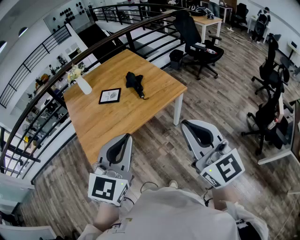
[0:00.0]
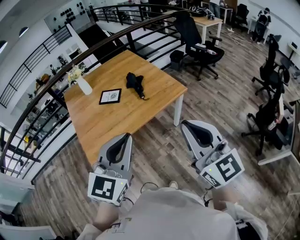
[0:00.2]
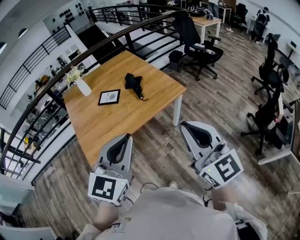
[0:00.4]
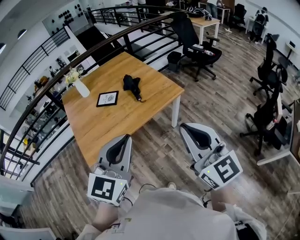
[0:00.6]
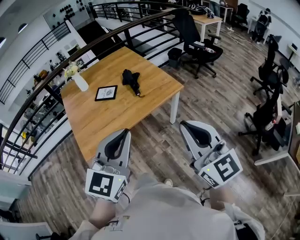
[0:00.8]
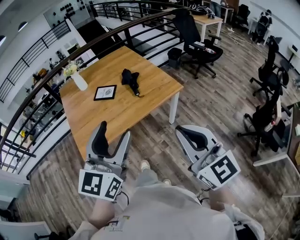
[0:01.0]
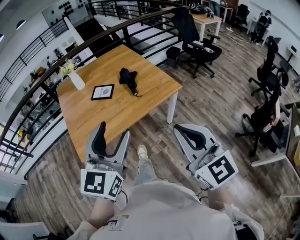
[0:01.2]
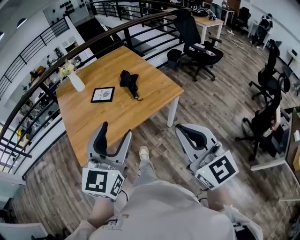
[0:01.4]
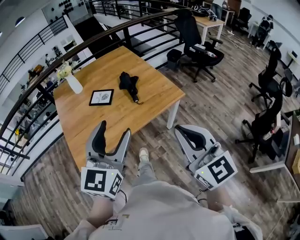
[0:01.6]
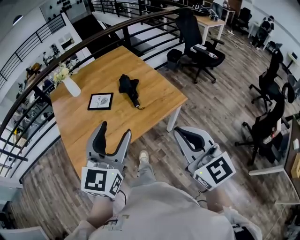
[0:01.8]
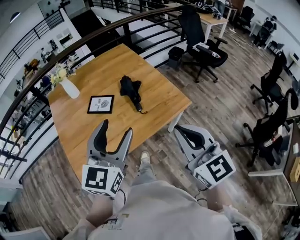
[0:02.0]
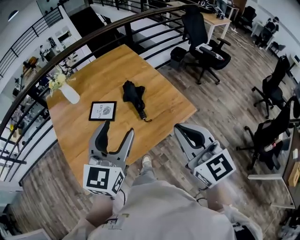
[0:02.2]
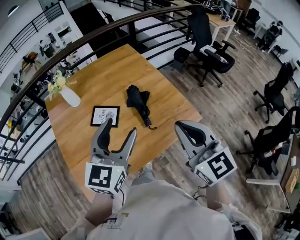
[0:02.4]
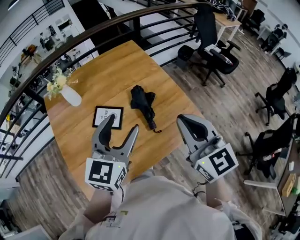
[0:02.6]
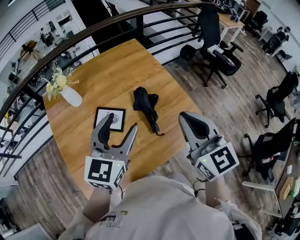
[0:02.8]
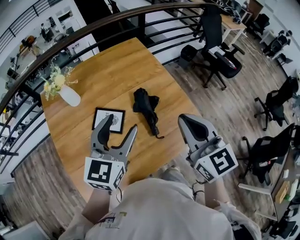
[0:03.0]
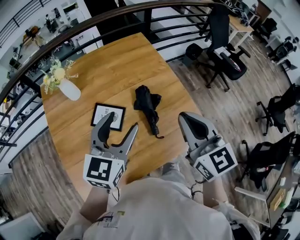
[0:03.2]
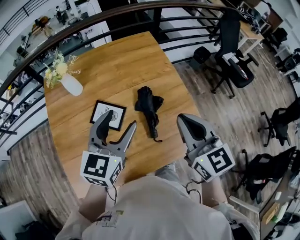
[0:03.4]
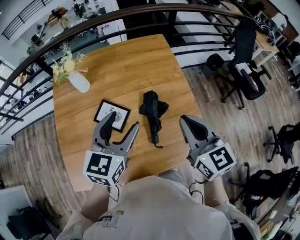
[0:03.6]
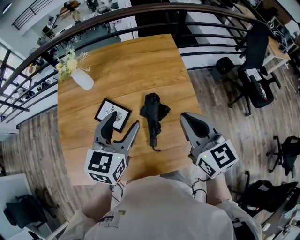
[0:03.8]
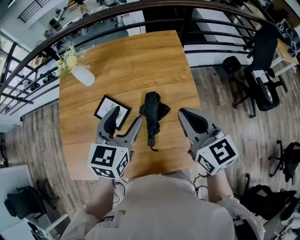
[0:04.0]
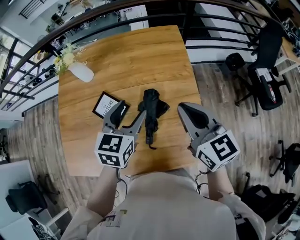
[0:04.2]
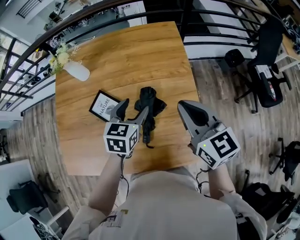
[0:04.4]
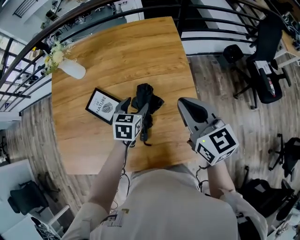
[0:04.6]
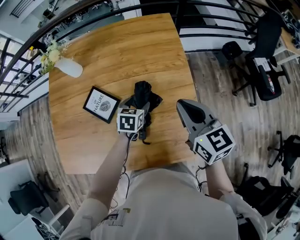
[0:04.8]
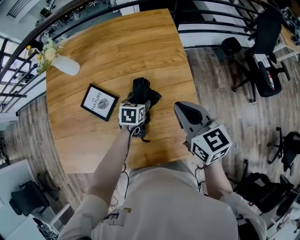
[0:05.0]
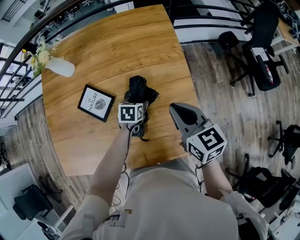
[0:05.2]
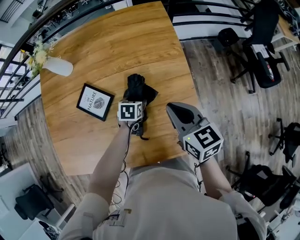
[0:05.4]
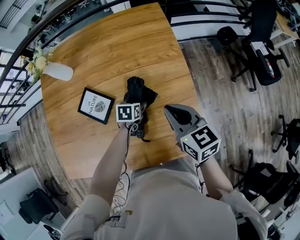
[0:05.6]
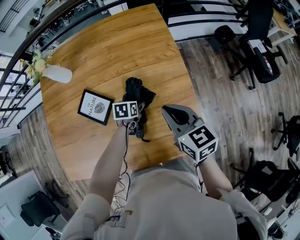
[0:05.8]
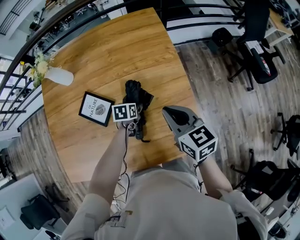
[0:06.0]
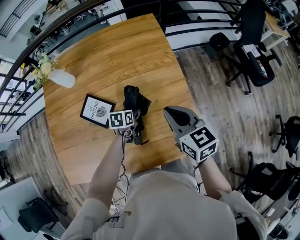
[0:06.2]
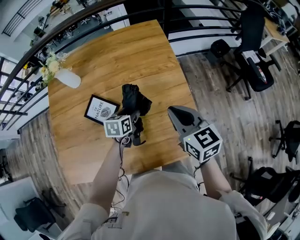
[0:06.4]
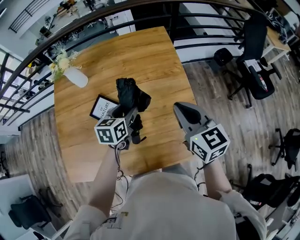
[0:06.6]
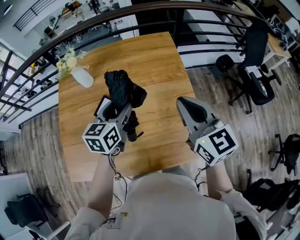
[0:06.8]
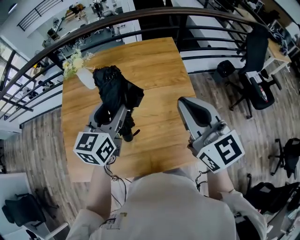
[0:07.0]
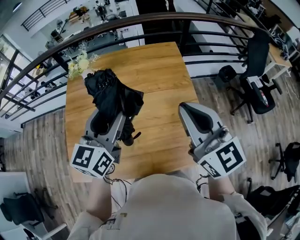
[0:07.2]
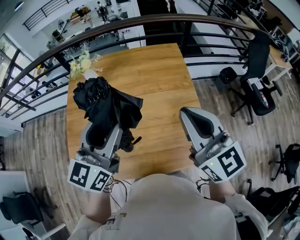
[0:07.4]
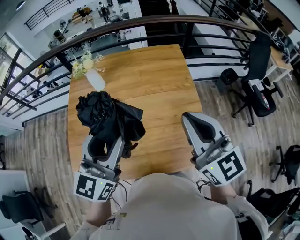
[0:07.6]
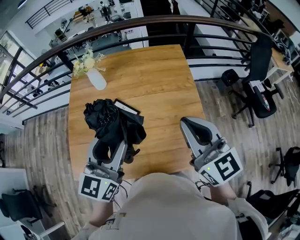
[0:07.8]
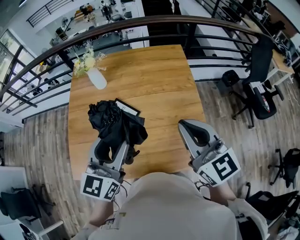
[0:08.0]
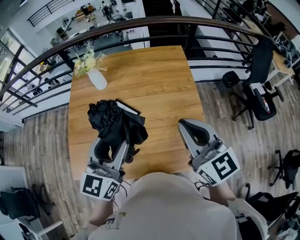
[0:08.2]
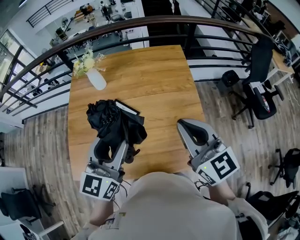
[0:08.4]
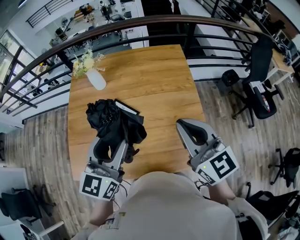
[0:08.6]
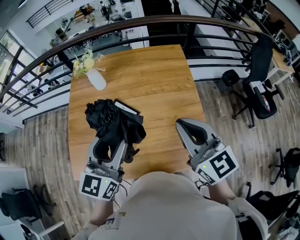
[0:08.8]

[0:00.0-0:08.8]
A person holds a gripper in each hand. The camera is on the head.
0:00.0 to 0:01.4: Both grippers move forward, roughly 5 cm. The left gripper opens up.
0:01.4 to 0:03.0: The pair of grippers is taken forward, about 50 cm.
0:03.0 to 0:04.4: The left gripper changes place by approximately 25 cm, and rotates approximately 30 degrees; the right gripper shifts by about 25 cm, and rotates some 30 degrees.
0:04.4 to 0:05.8: The left gripper is displaced downward by about 25 cm, and rotates approximately 30 degrees, while the right gripper is displaced downward by approximately 15 cm.
0:05.8 to 0:07.4: The left gripper is displaced upward by roughly 50 cm, and points its fingers about 60 degrees further upward. Meanwhile the right gripper goes about 25 cm upward, and rotates roughly 30 degrees.
0:07.4 to 0:08.8: The grippers stay close to where they were, moving slightly.

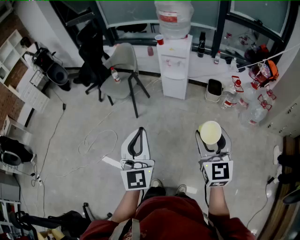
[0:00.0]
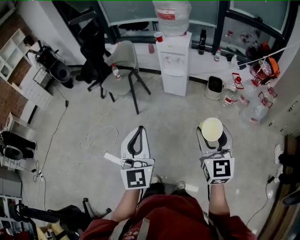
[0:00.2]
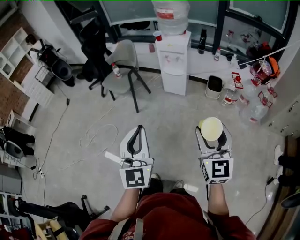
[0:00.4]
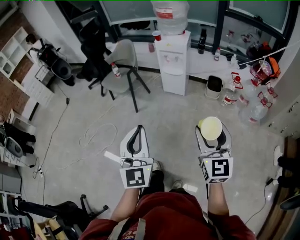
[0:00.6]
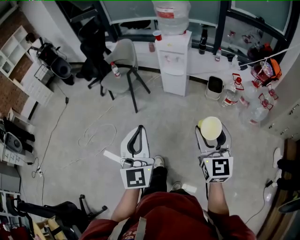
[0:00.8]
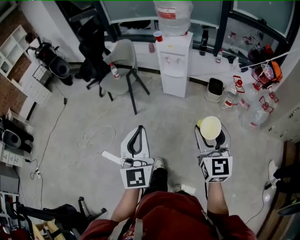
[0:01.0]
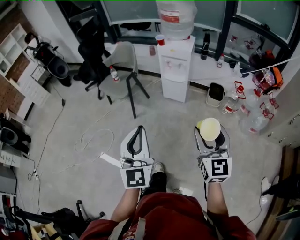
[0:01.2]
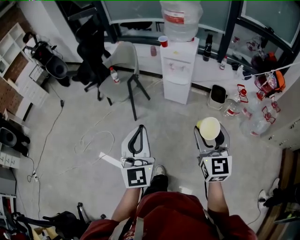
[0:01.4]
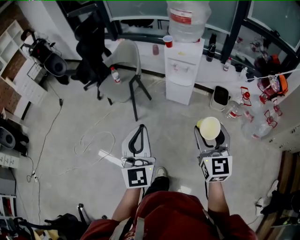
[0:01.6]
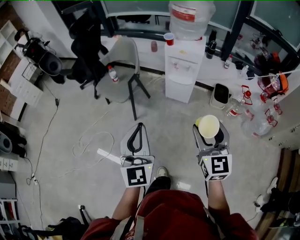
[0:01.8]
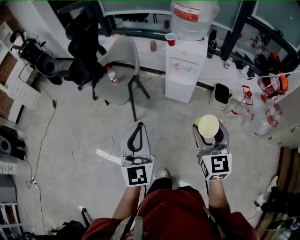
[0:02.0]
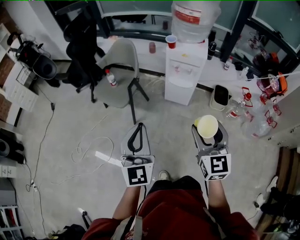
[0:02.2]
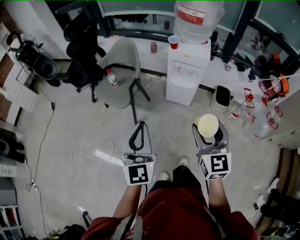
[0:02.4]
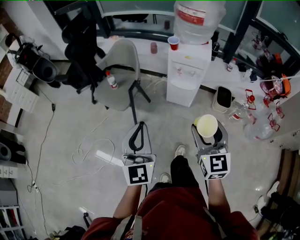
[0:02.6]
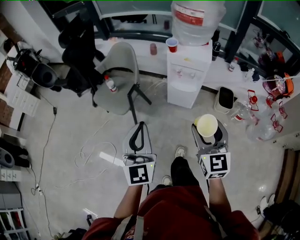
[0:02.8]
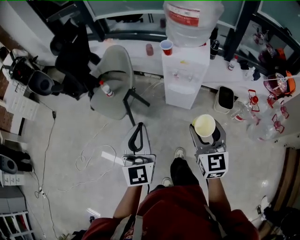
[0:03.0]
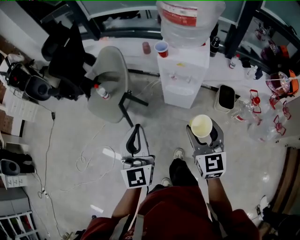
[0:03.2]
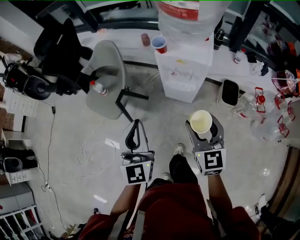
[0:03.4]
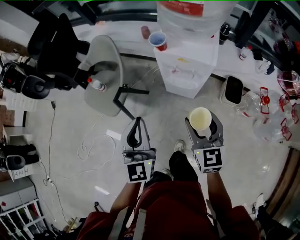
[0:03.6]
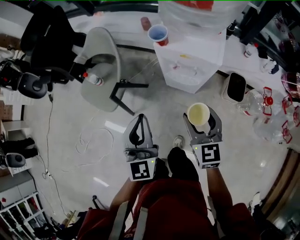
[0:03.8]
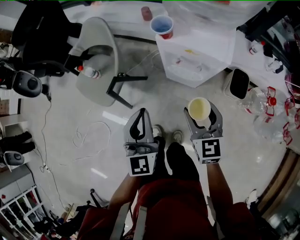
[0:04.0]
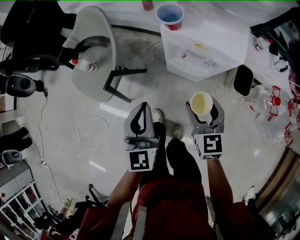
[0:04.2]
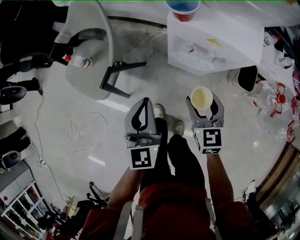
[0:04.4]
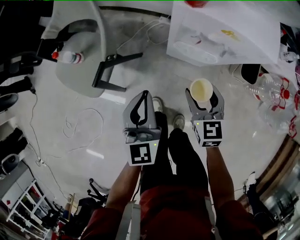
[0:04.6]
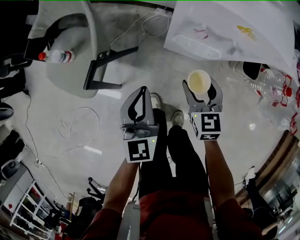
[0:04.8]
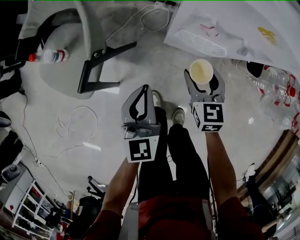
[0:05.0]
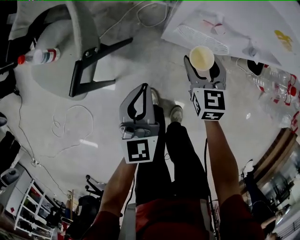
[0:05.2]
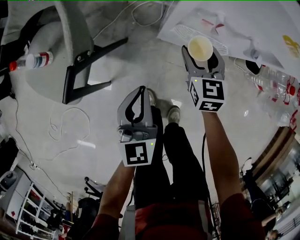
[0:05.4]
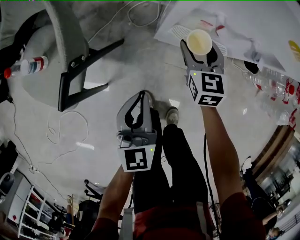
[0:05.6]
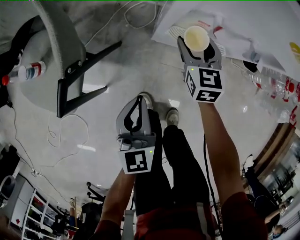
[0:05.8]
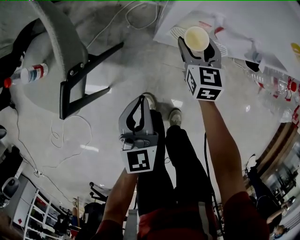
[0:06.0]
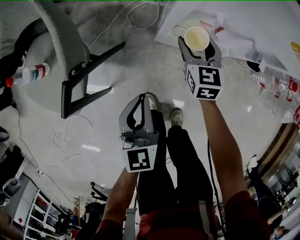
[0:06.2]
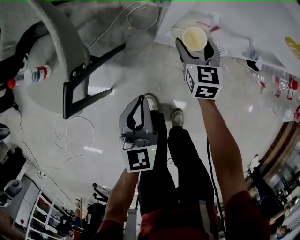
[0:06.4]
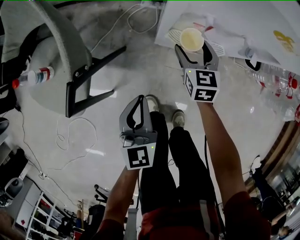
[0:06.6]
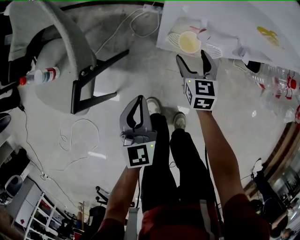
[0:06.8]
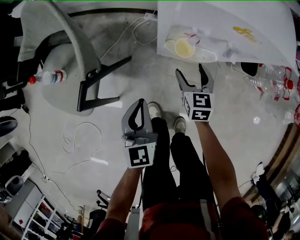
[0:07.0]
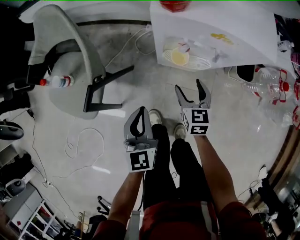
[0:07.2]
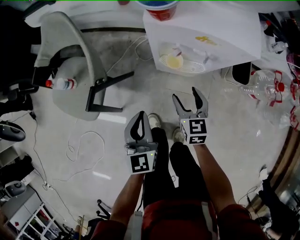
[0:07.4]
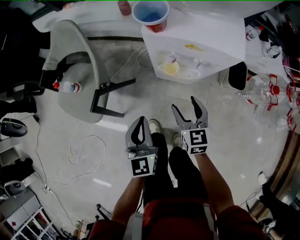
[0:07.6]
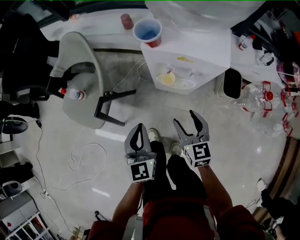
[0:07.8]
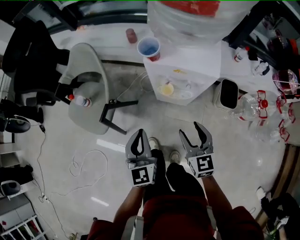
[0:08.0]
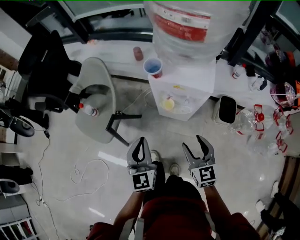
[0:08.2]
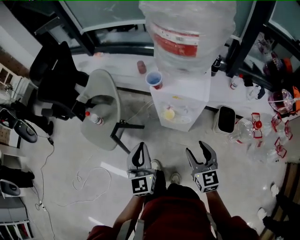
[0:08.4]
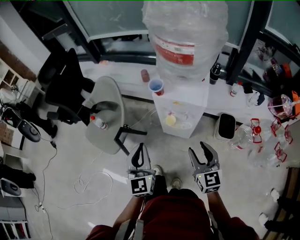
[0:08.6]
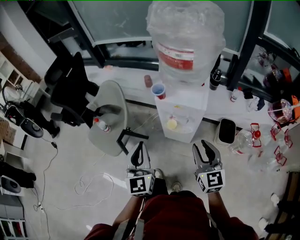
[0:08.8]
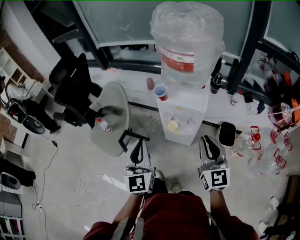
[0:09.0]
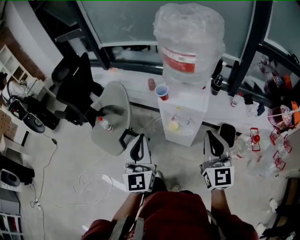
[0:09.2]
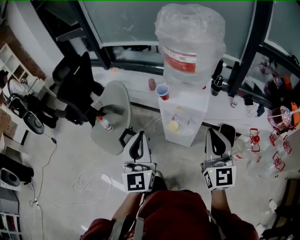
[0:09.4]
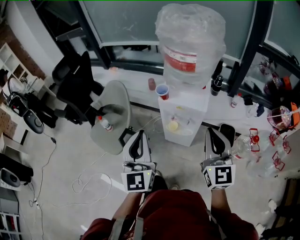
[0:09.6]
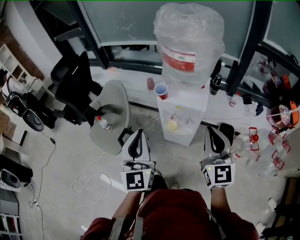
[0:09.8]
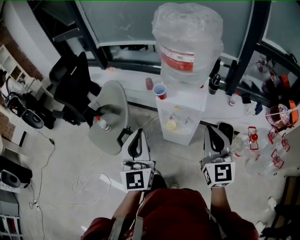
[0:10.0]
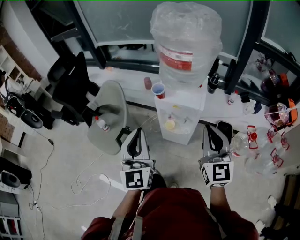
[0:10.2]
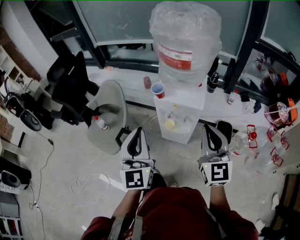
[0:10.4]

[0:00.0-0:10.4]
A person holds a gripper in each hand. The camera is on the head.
0:00.0 to 0:01.4: The two grippers go about 10 cm forward.
0:01.4 to 0:03.0: Both grippers travel together forward, approximately 30 cm.
0:03.0 to 0:04.4: The two grippers go approximately 35 cm downward and forward.
0:04.4 to 0:06.0: The right gripper shifts approximately 30 cm downward and forward. The left gripper goes approximately 25 cm downward.
0:06.0 to 0:07.4: The left gripper moves upward, about 10 cm, while the right gripper shifts approximately 20 cm backward and upward.
0:07.4 to 0:09.0: Both grippers move upward, roughly 40 cm. The right gripper points its fingers roughly 30 degrees further upward, and closes up. The left gripper rotates approximately 20 degrees.
0:09.0 to 0:10.4: The grippers both shift upward by approximately 5 cm.

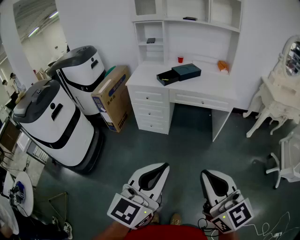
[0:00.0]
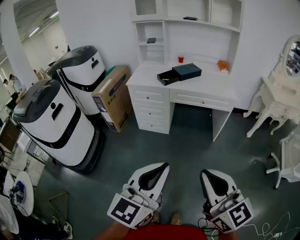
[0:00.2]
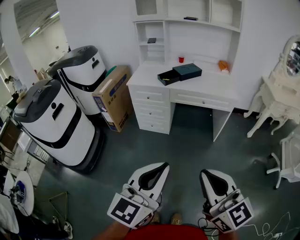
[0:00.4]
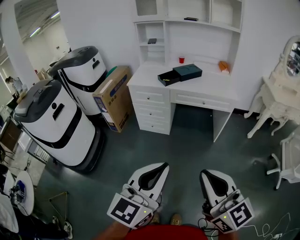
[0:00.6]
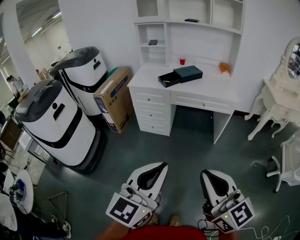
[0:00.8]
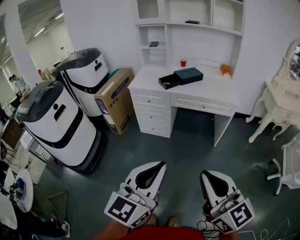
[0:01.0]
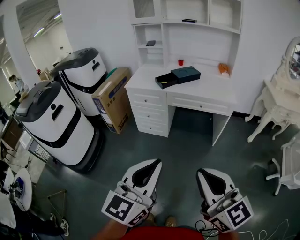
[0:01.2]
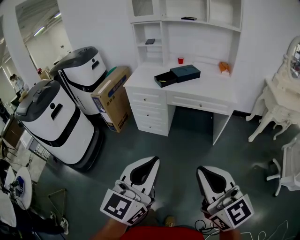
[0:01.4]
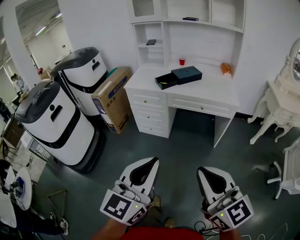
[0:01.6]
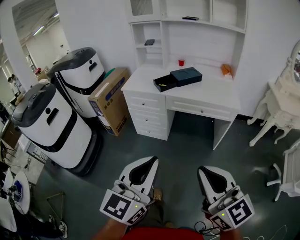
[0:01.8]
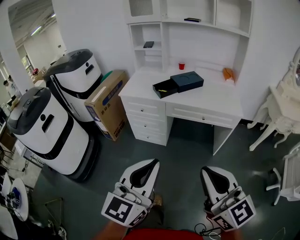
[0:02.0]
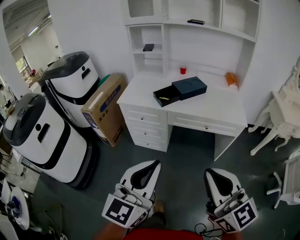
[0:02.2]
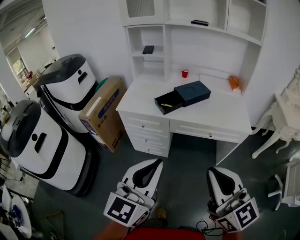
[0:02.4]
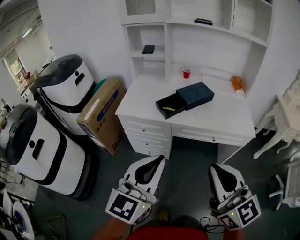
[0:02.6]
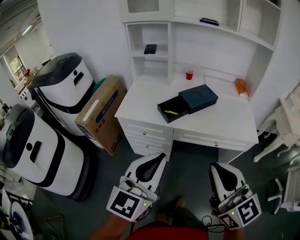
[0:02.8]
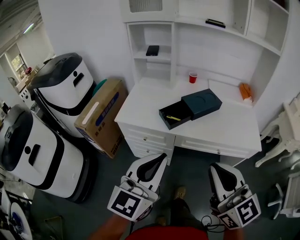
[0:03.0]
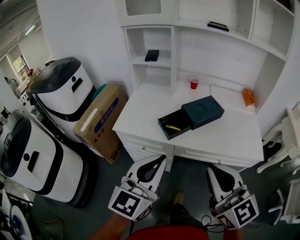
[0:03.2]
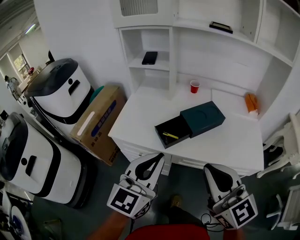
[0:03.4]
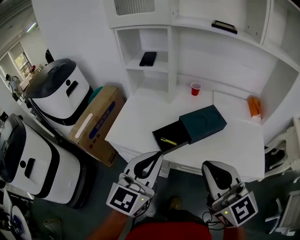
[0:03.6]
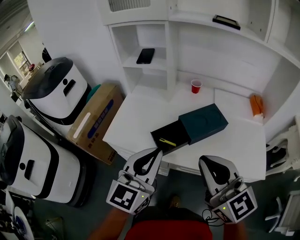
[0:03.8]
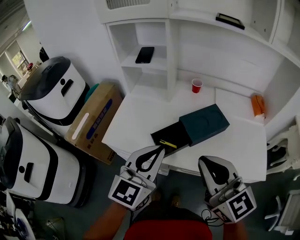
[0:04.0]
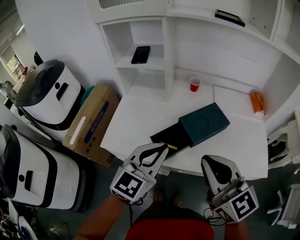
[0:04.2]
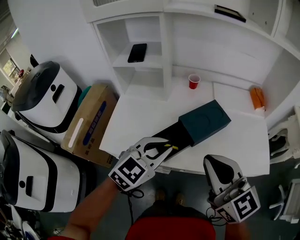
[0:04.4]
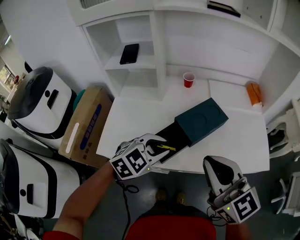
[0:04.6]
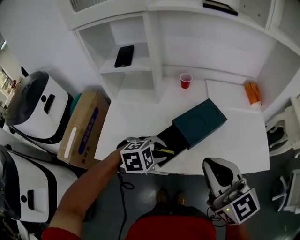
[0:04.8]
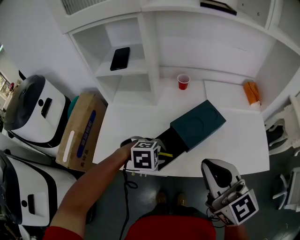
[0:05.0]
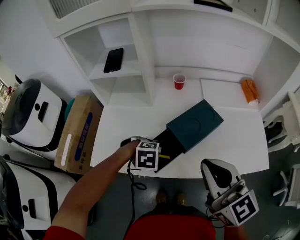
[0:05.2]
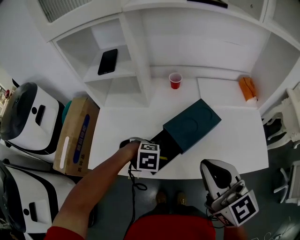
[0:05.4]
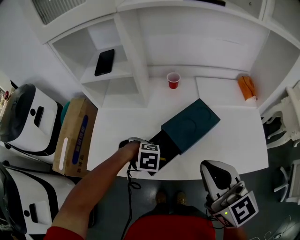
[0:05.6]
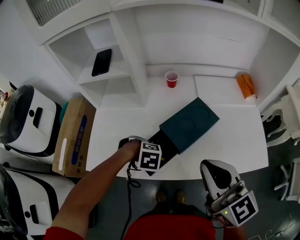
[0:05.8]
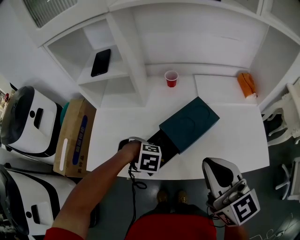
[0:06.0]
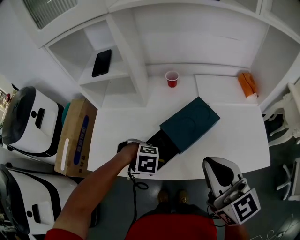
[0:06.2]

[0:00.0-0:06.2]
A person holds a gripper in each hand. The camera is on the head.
0:00.0 to 0:01.6: The right gripper travels forward and to the right by some 10 cm. Meanwhile the left gripper goes some 5 cm forward.
0:01.6 to 0:03.2: Both grippers are carried forward, about 50 cm.
0:03.2 to 0:04.6: The left gripper shifts about 30 cm forward and downward, and points its fingers roughly 40 degrees further downward; the right gripper is displaced forward by roughly 20 cm.
0:04.6 to 0:06.2: The left gripper is displaced downward by about 15 cm, and points its fingers some 50 degrees further downward. The right gripper moves roughly 10 cm.
